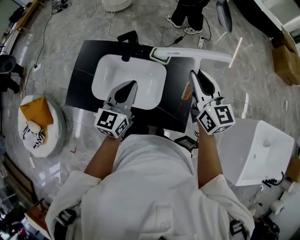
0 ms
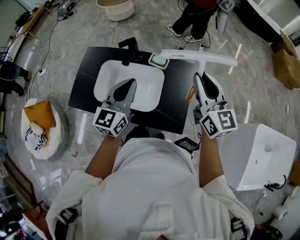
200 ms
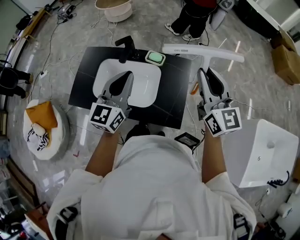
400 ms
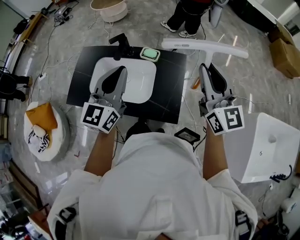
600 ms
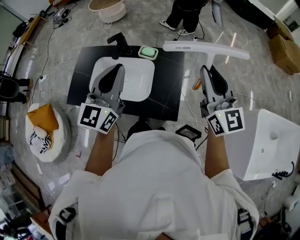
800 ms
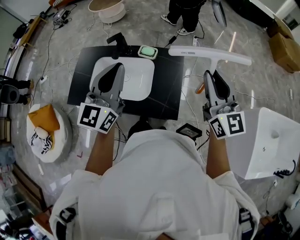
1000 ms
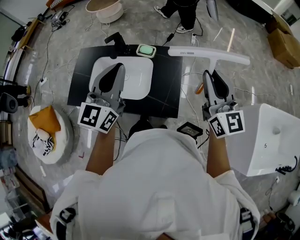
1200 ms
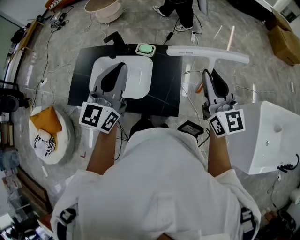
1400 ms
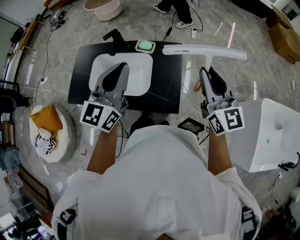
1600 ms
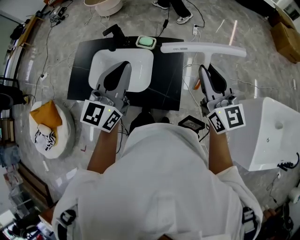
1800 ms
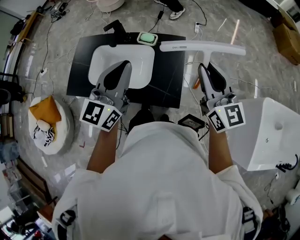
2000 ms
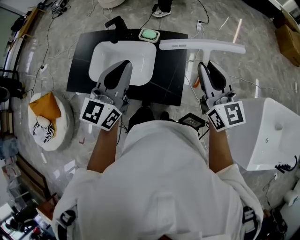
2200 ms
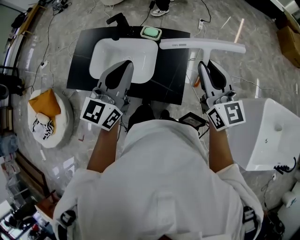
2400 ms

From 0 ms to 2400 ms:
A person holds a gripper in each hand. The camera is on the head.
From 0 ms to 1200 ms: The left gripper is displaced upward, to the right and backward by about 15 cm. The right gripper shifts roughly 20 cm to the right, backward and upward.
From 1200 ms to 2400 ms: The right gripper ends up some 5 cm from where it was. Meanwhile the left gripper travels downward by roughly 5 cm.

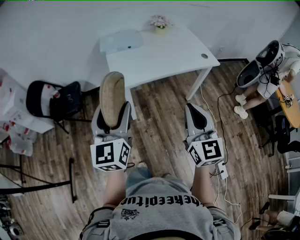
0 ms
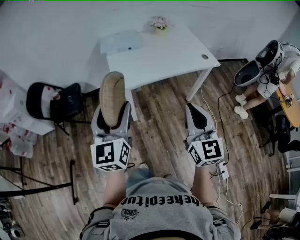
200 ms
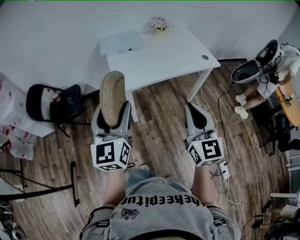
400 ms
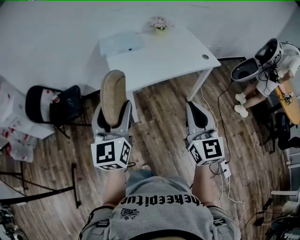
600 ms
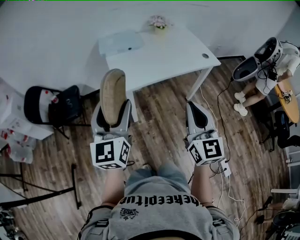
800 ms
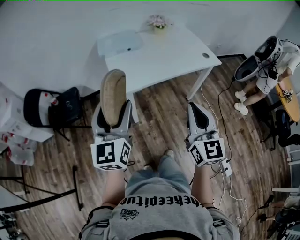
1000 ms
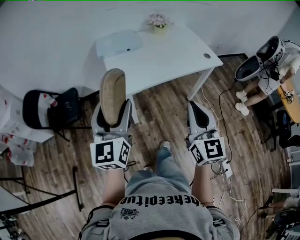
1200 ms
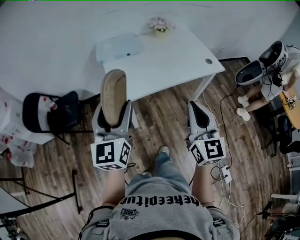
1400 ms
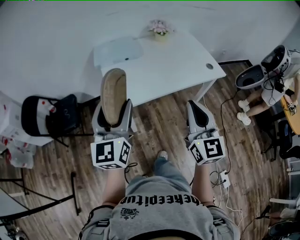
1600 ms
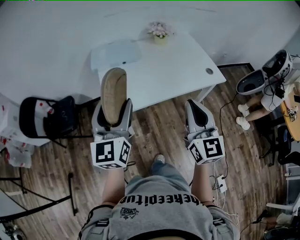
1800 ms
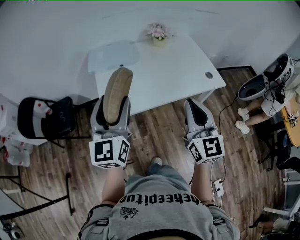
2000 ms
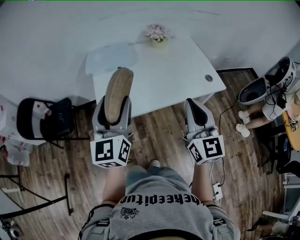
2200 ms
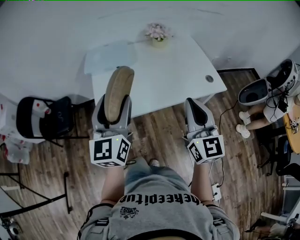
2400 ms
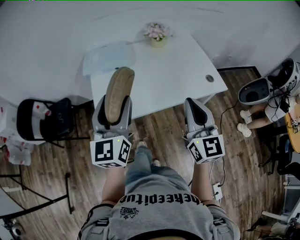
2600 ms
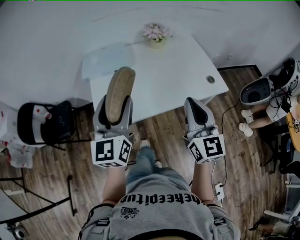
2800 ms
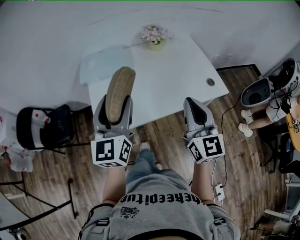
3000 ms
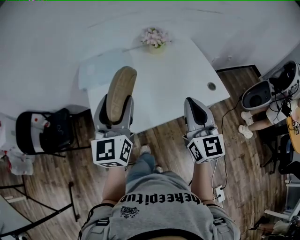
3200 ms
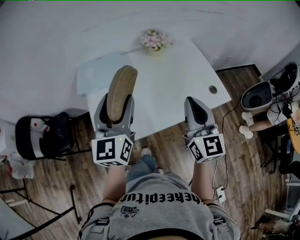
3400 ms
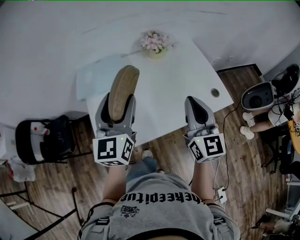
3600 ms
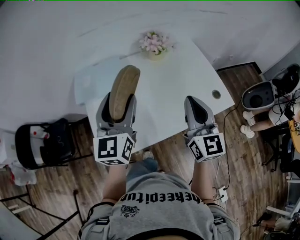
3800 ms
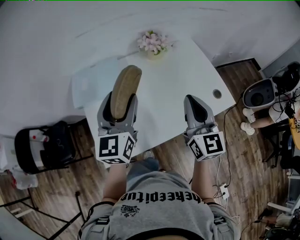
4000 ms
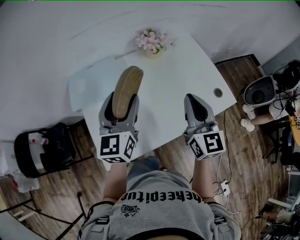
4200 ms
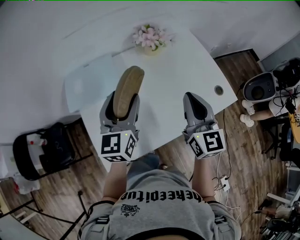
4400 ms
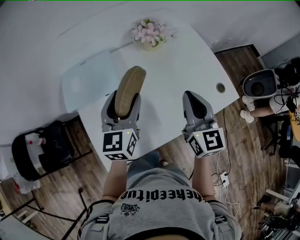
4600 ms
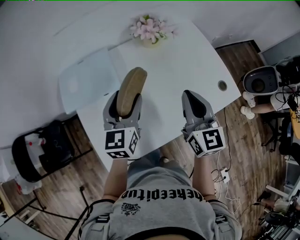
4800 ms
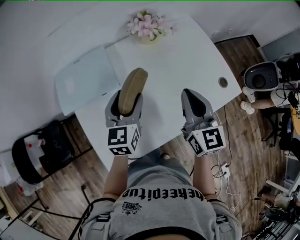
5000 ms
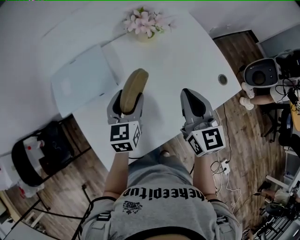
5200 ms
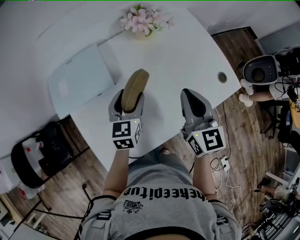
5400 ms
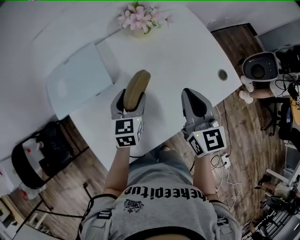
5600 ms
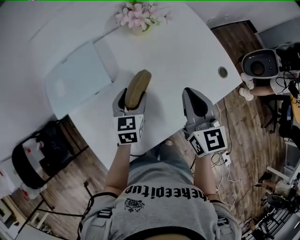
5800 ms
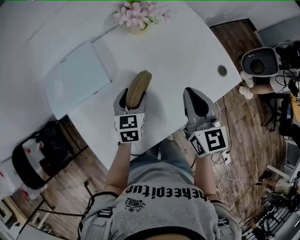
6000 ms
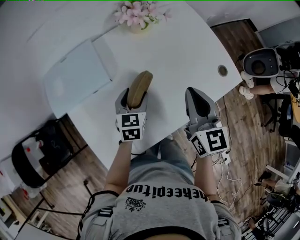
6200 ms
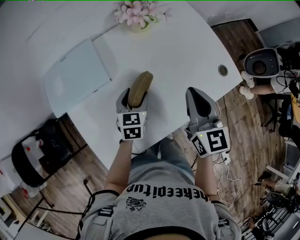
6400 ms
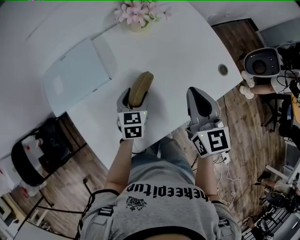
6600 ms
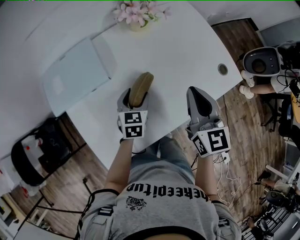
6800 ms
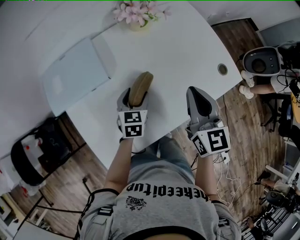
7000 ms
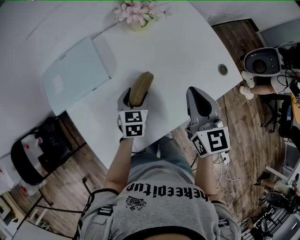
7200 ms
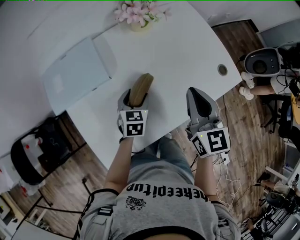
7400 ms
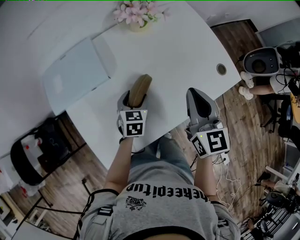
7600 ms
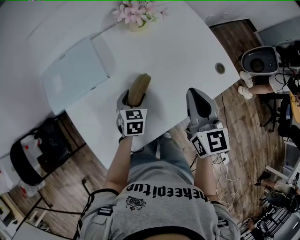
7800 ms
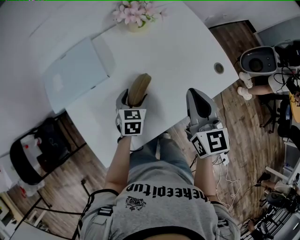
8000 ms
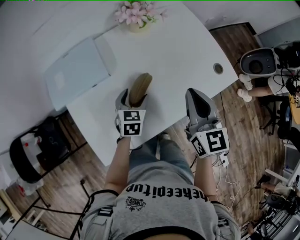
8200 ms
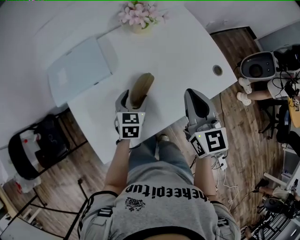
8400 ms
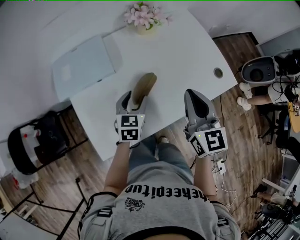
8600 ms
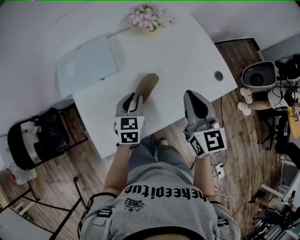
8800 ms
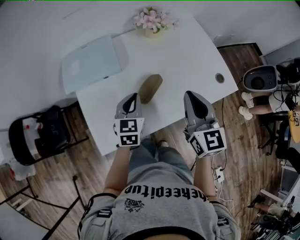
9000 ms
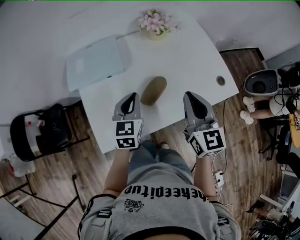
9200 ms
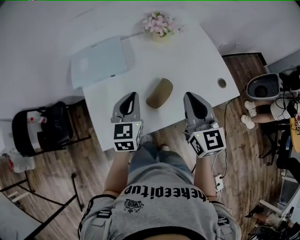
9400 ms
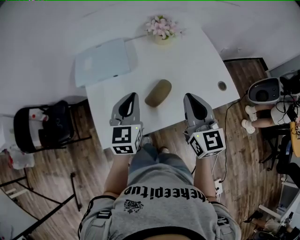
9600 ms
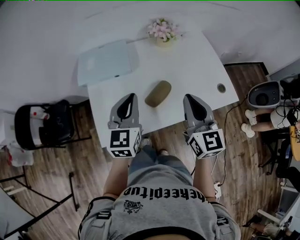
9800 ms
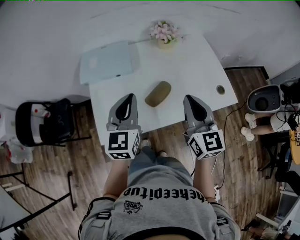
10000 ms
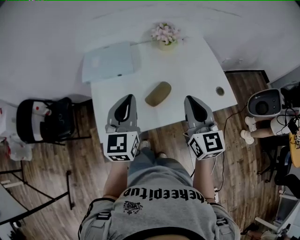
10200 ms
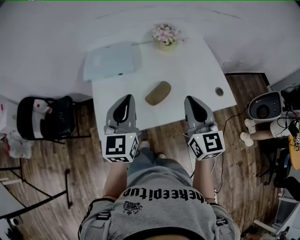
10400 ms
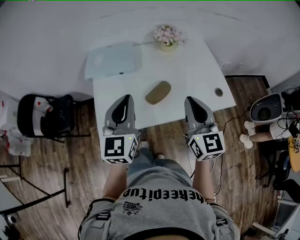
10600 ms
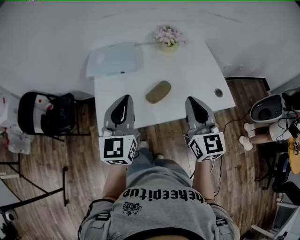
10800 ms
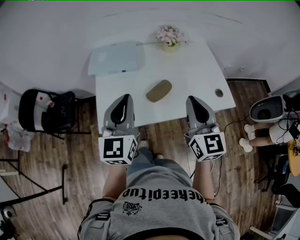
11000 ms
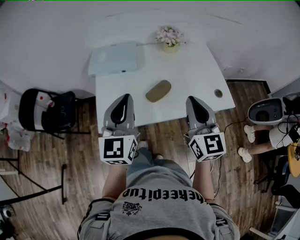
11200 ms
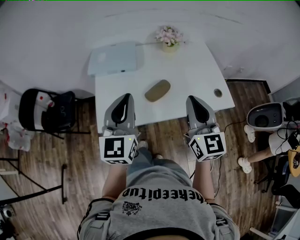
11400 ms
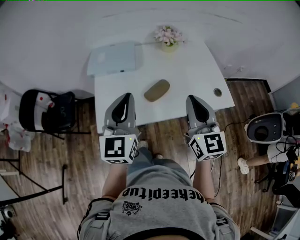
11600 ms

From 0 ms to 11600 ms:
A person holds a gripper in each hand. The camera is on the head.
From 0 ms to 1400 ms: The two grippers go approximately 10 cm forward.
From 1400 ms to 2800 ms: Both grippers travel together forward and to the right, about 20 cm.
From 2800 ms to 4400 ms: The two grippers go approximately 25 cm forward.
From 4400 ms to 5800 ms: The right gripper goes approximately 5 cm downward; the left gripper is displaced downward by some 20 cm, and rotates roughly 30 degrees.
From 5800 ms to 7200 ms: The left gripper ends up roughly 5 cm from where it was.
From 7200 ms to 8800 ms: The right gripper is displaced backward by approximately 5 cm; the left gripper goes approximately 10 cm upward and backward, and closes up.
From 8800 ms to 10200 ms: The right gripper moves backward, about 5 cm. The left gripper shifts roughly 20 cm upward and backward, and swivels approximately 30 degrees.
From 10200 ms to 11600 ms: The left gripper travels backward by roughly 5 cm, while the right gripper ends up approximately 5 cm from where it was.

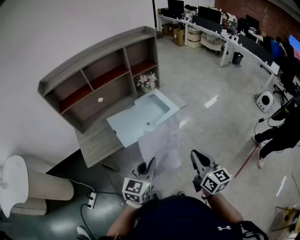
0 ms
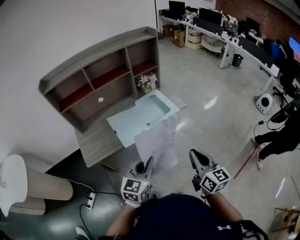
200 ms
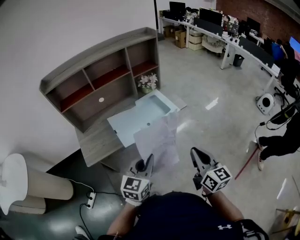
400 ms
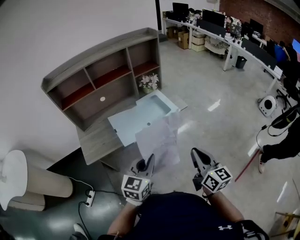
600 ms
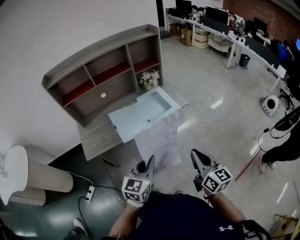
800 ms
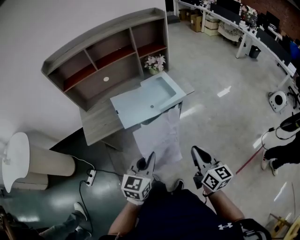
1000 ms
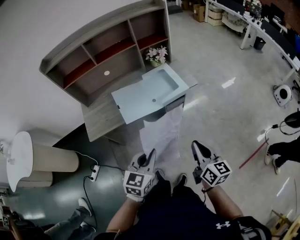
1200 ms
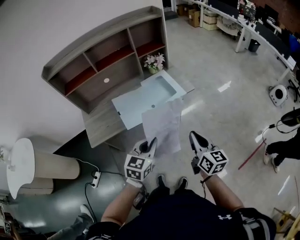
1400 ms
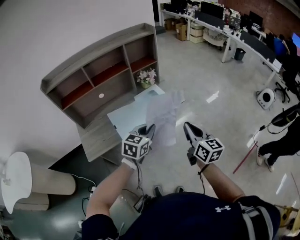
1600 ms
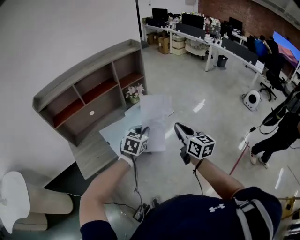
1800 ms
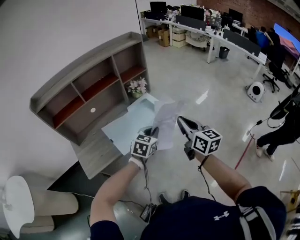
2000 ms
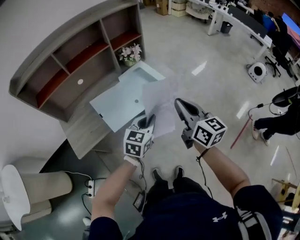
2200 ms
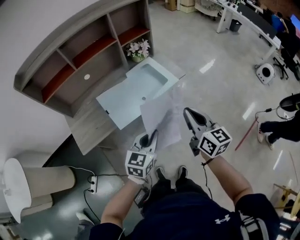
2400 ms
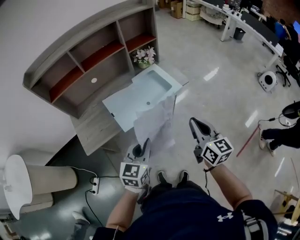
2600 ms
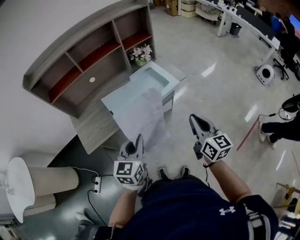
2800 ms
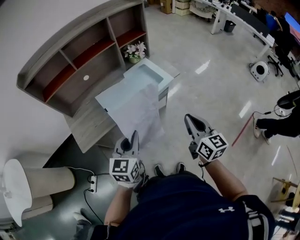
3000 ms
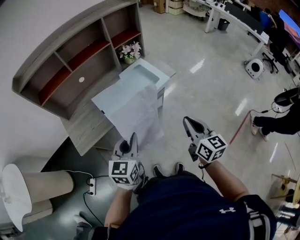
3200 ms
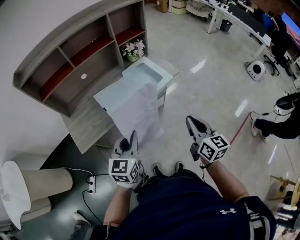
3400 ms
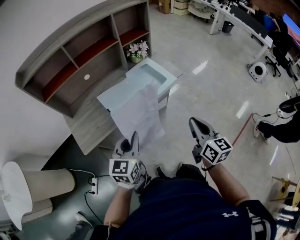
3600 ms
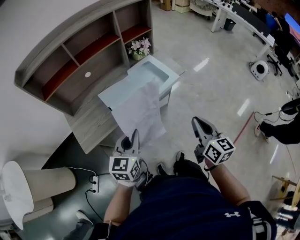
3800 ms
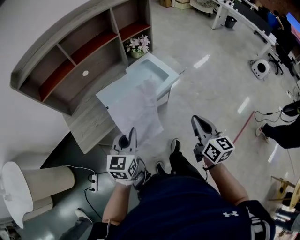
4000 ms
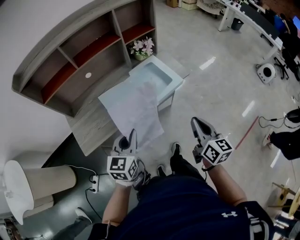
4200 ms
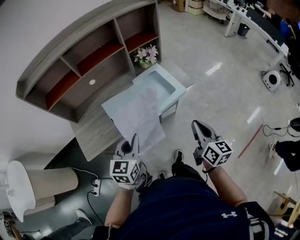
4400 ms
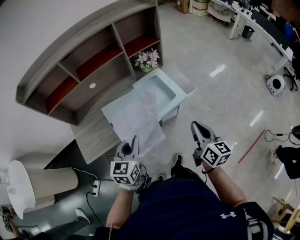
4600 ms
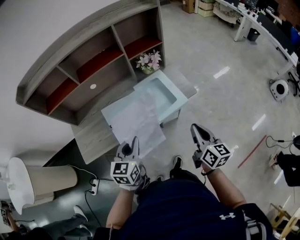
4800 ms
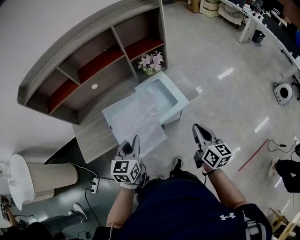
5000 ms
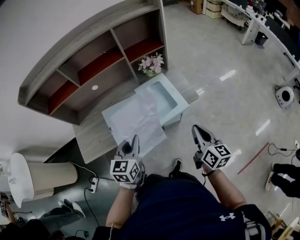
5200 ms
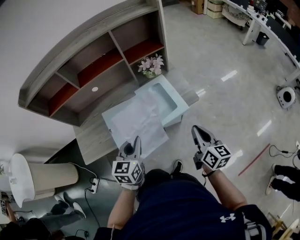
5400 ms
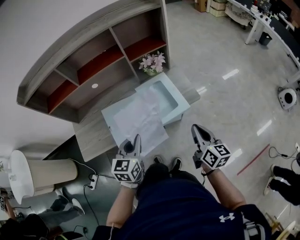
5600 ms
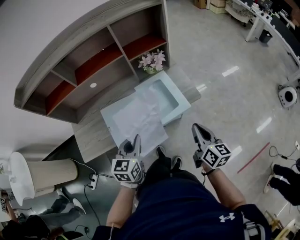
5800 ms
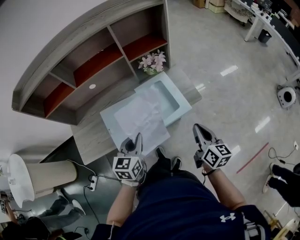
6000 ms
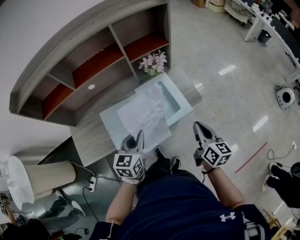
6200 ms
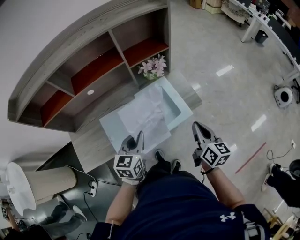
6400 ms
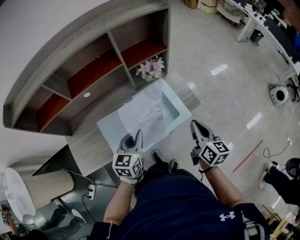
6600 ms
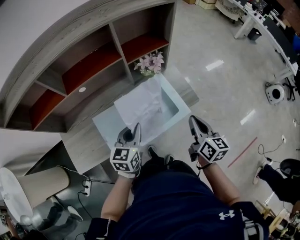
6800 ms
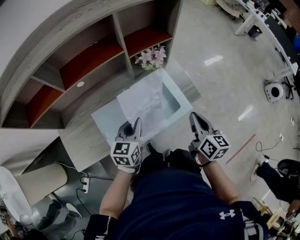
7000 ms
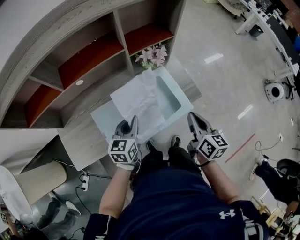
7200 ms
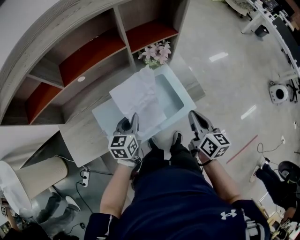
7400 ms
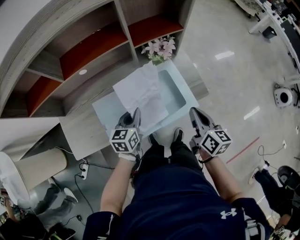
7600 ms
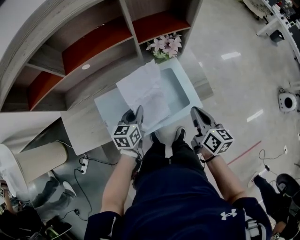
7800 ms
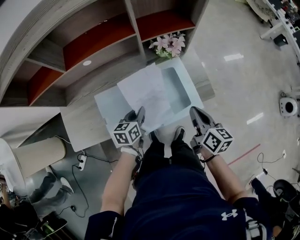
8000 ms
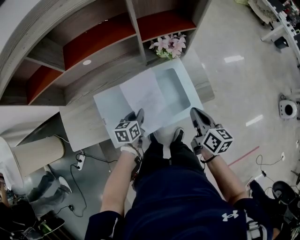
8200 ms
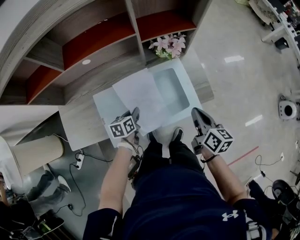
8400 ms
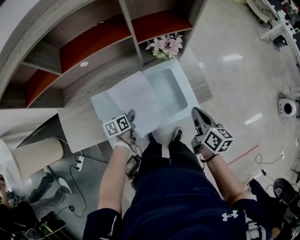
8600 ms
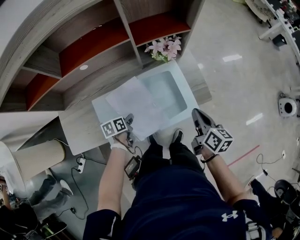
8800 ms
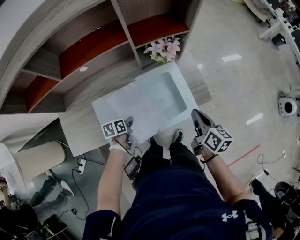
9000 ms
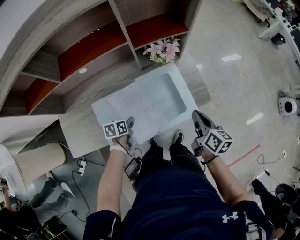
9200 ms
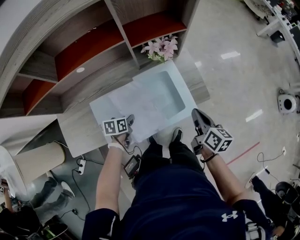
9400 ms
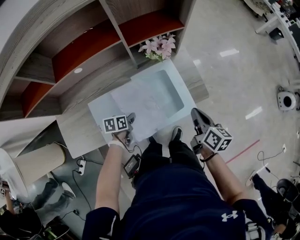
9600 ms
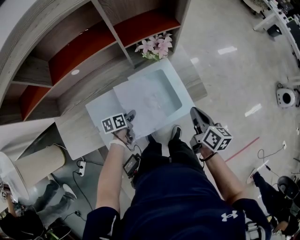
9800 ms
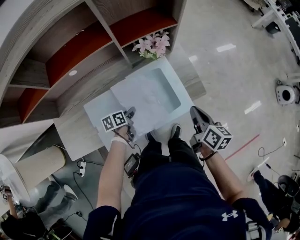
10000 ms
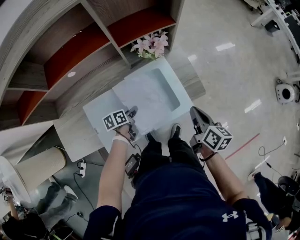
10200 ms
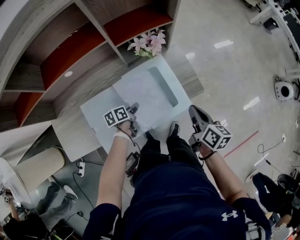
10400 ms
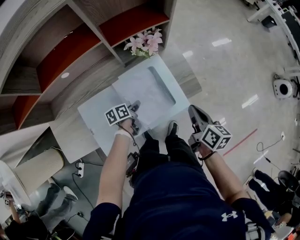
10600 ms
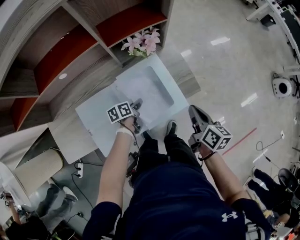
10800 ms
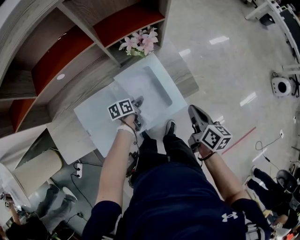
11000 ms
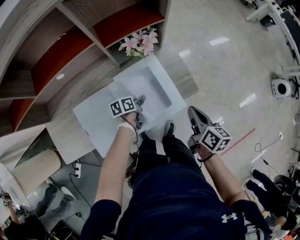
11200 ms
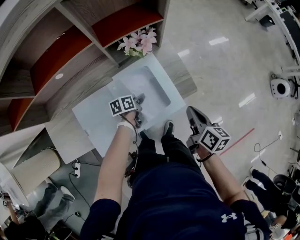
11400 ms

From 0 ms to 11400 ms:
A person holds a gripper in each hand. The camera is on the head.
From 0 ms to 1400 ms: The right gripper is displaced forward by roughly 5 cm.
From 1400 ms to 2800 ms: The left gripper shifts roughly 10 cm to the left, and travels forward and back again, some 15 cm each way; the right gripper reaches some 10 cm upward, then returns.
From 2800 ms to 4200 ms: The left gripper shifts about 5 cm forward, while the right gripper shifts by about 5 cm.
From 4200 ms to 5600 ms: The two grippers go some 15 cm forward and to the right.
From 5600 ms to 7200 ms: The right gripper heads forward and to the left, covering roughly 15 cm. The left gripper travels forward and downward by about 15 cm.
From 7200 ms to 8600 ms: The right gripper travels downward by about 5 cm, while the left gripper moves downward, some 15 cm, and changes its angle by roughly 40 degrees.
From 8600 ms to 10000 ms: The left gripper moves about 5 cm.
From 10000 ms to 11400 ms: The left gripper heads to the right and forward, covering some 15 cm.
